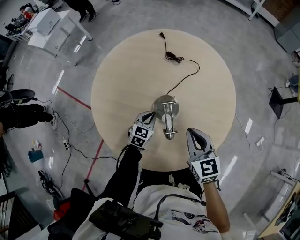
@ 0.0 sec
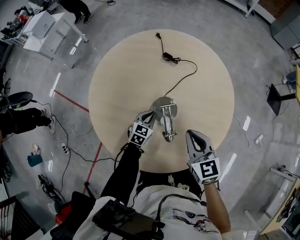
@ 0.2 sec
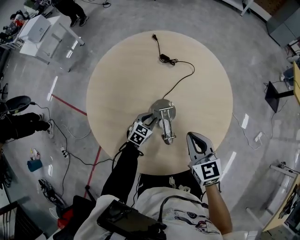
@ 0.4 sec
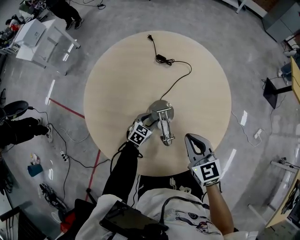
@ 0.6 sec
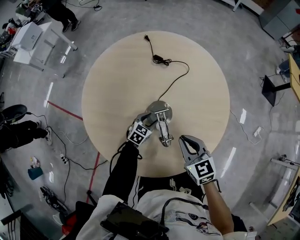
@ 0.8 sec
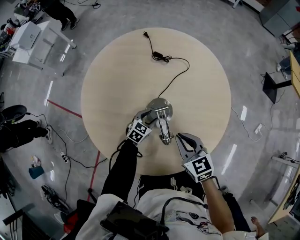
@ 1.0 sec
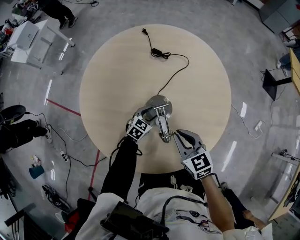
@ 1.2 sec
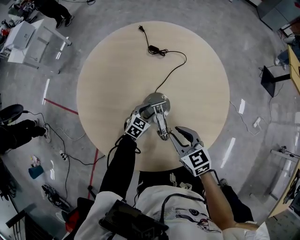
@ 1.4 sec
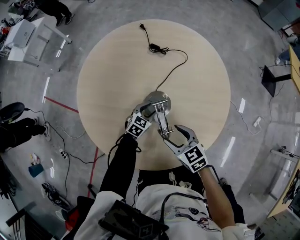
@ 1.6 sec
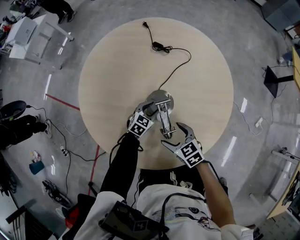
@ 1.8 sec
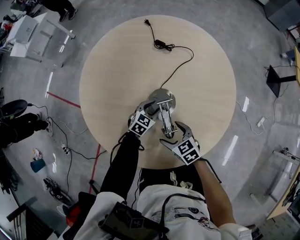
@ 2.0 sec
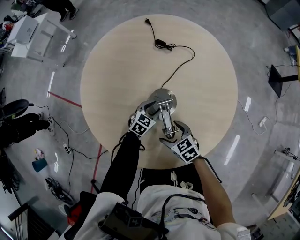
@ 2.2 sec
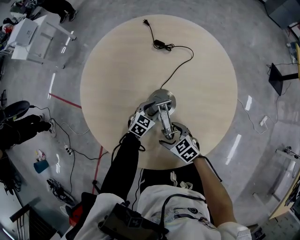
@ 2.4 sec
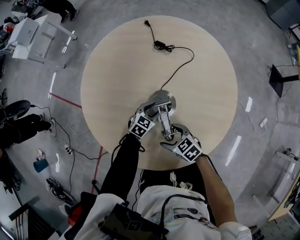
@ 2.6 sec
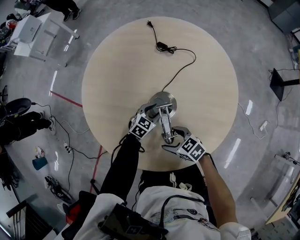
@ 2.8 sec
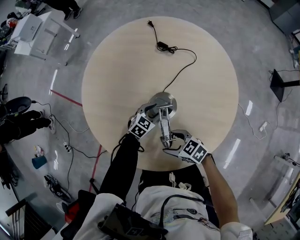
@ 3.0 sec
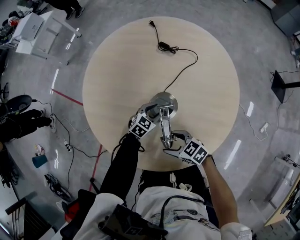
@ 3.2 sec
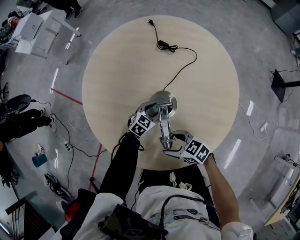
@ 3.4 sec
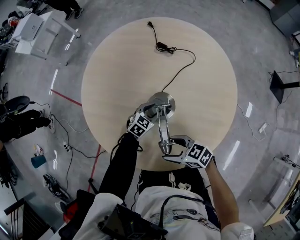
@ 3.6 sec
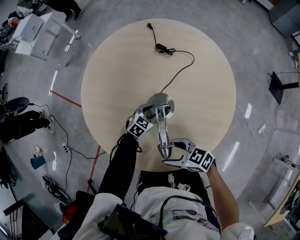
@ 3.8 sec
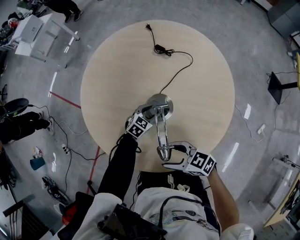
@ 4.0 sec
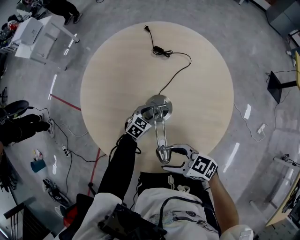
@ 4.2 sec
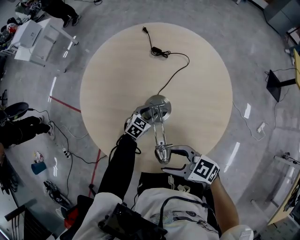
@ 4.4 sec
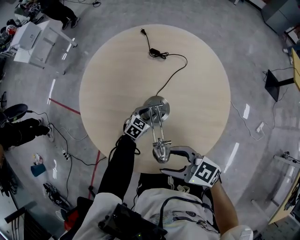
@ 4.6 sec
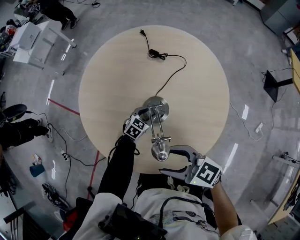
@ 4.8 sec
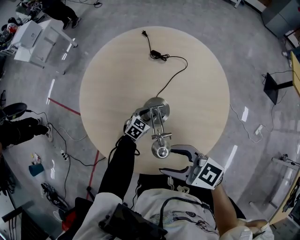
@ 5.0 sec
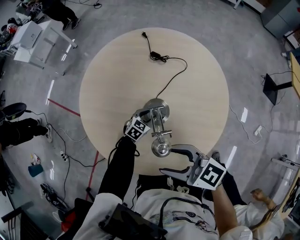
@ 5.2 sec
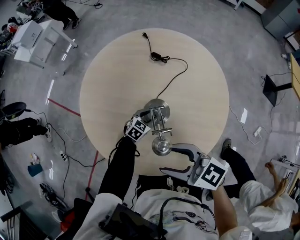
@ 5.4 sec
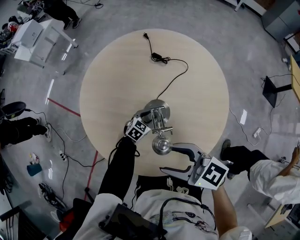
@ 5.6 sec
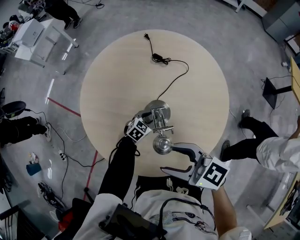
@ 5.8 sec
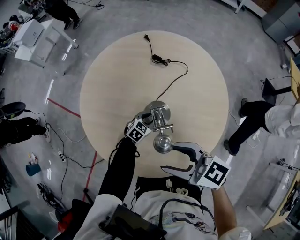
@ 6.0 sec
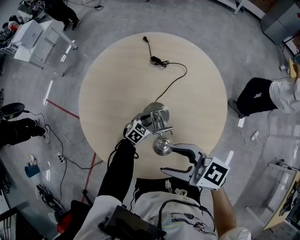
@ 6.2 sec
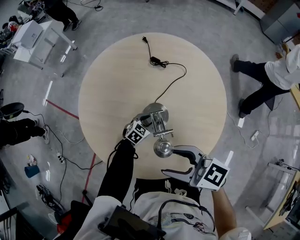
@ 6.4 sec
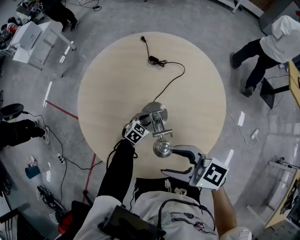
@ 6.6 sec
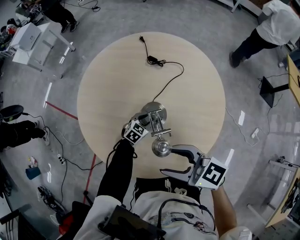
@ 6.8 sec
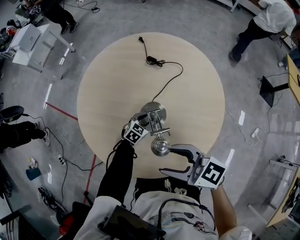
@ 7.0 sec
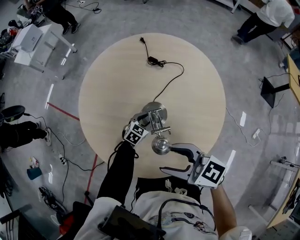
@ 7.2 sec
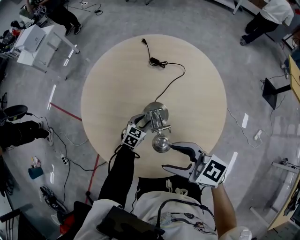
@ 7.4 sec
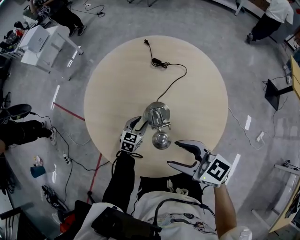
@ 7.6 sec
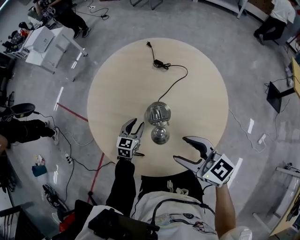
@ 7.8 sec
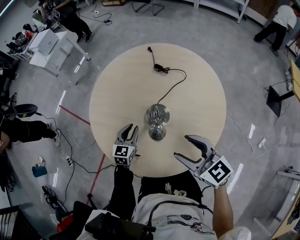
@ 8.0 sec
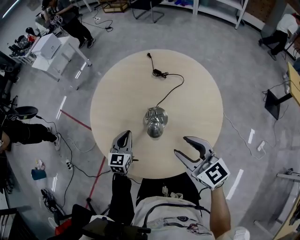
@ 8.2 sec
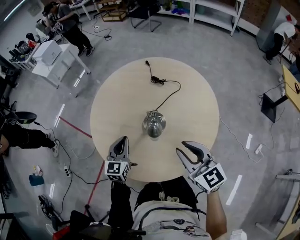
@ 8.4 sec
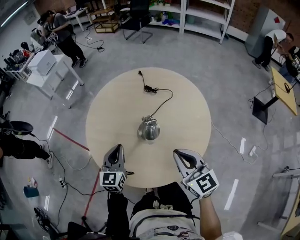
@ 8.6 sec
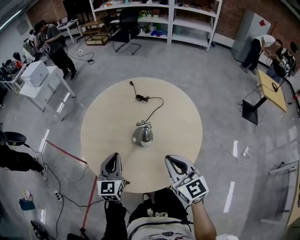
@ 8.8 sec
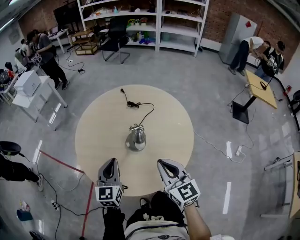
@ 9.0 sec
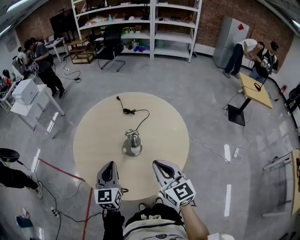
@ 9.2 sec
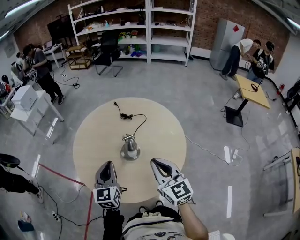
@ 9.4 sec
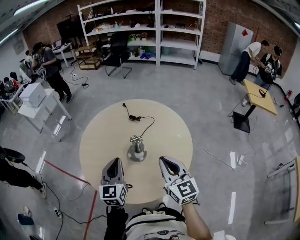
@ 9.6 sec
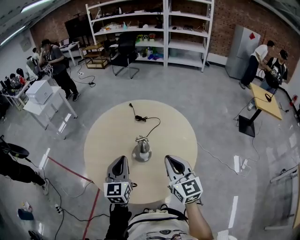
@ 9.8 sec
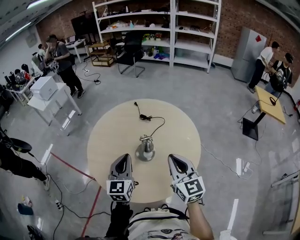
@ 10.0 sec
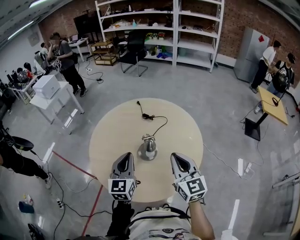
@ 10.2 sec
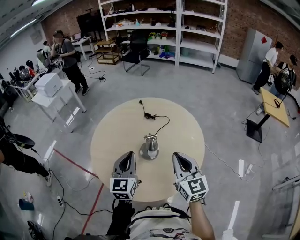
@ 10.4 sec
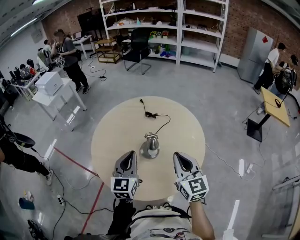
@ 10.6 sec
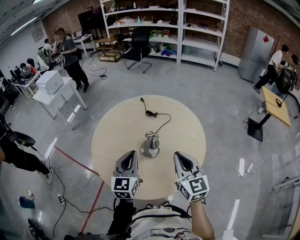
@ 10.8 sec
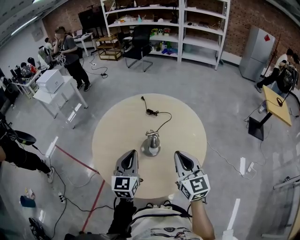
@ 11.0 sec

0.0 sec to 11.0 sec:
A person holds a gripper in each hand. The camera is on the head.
0.0 sec to 1.6 sec: Both grippers move downward, approximately 10 cm. The left gripper opens; the right gripper rotates approximately 20 degrees, and opens.
1.6 sec to 3.2 sec: The right gripper moves downward, approximately 5 cm, and changes its angle by about 30 degrees.
3.2 sec to 4.8 sec: The right gripper travels upward by roughly 20 cm, and rotates about 20 degrees.
4.8 sec to 6.2 sec: The right gripper ends up some 5 cm from where it was.
6.2 sec to 7.8 sec: The right gripper shifts about 5 cm to the right; the left gripper is displaced upward and to the left by approximately 15 cm, and swivels about 30 degrees.
7.8 sec to 9.4 sec: The left gripper heads upward and backward, covering about 30 cm, swivels approximately 30 degrees, and closes its fingers. The right gripper shifts about 15 cm upward and backward, swivels approximately 40 degrees, and closes its fingers.
9.4 sec to 11.0 sec: The grippers stay close to where they were, moving slightly.

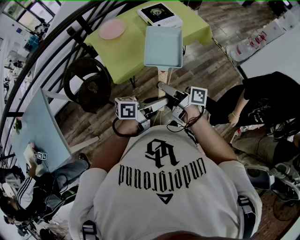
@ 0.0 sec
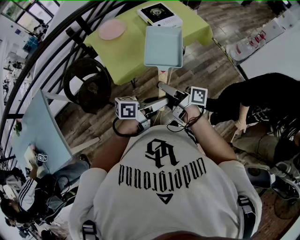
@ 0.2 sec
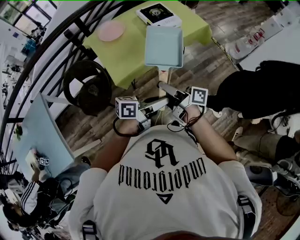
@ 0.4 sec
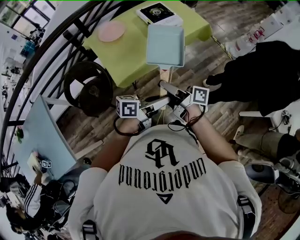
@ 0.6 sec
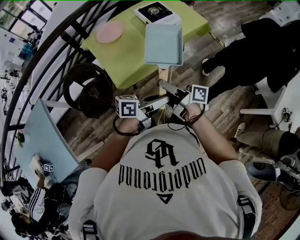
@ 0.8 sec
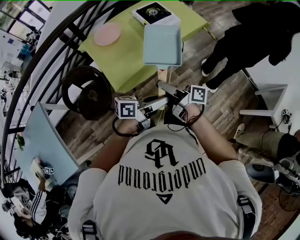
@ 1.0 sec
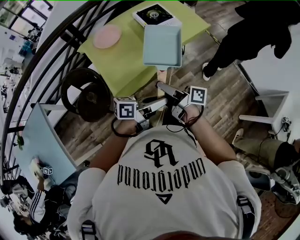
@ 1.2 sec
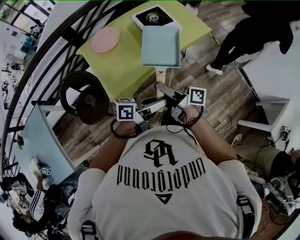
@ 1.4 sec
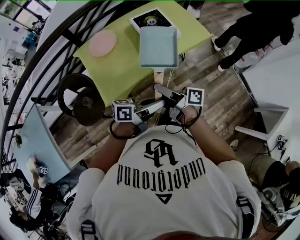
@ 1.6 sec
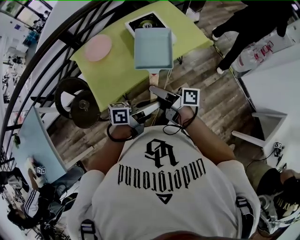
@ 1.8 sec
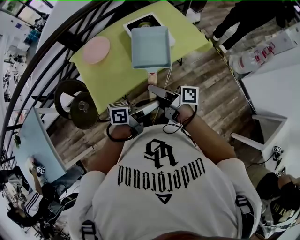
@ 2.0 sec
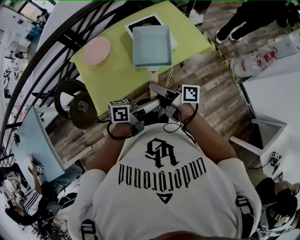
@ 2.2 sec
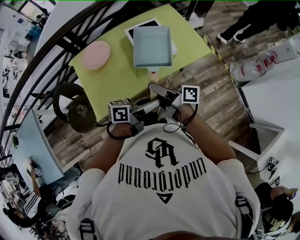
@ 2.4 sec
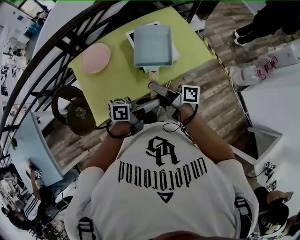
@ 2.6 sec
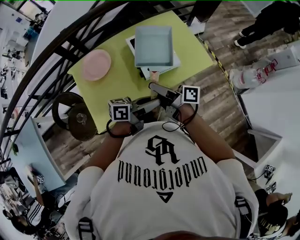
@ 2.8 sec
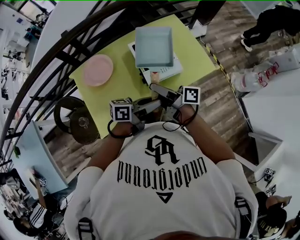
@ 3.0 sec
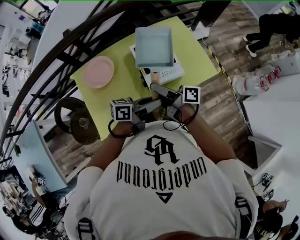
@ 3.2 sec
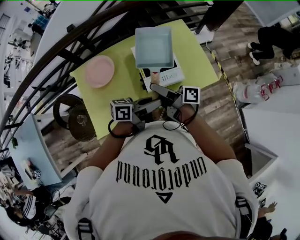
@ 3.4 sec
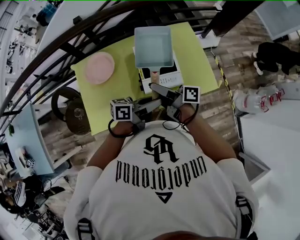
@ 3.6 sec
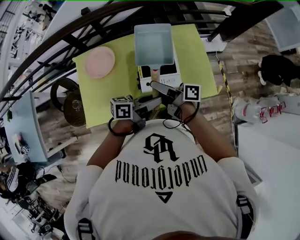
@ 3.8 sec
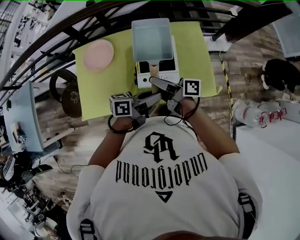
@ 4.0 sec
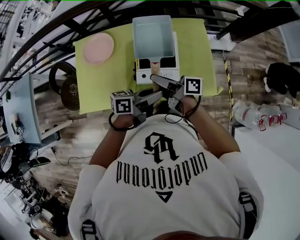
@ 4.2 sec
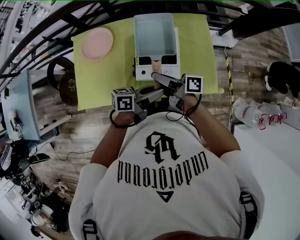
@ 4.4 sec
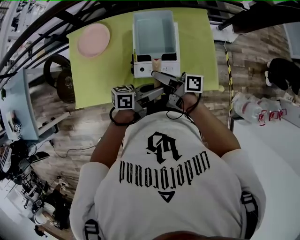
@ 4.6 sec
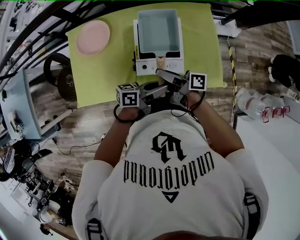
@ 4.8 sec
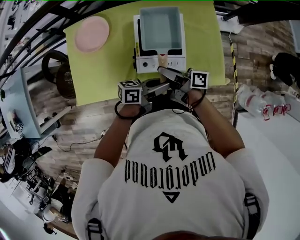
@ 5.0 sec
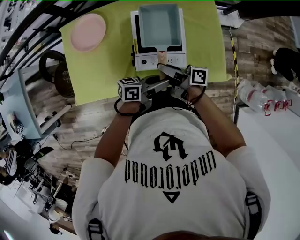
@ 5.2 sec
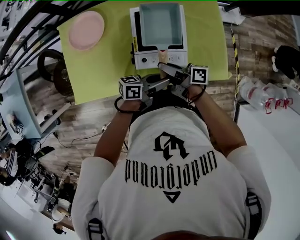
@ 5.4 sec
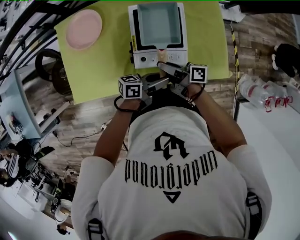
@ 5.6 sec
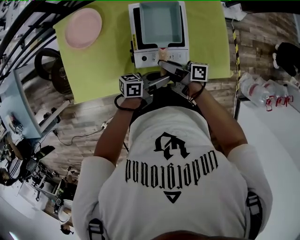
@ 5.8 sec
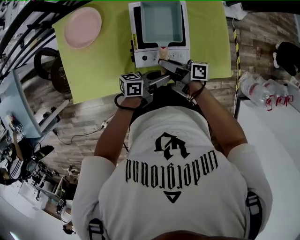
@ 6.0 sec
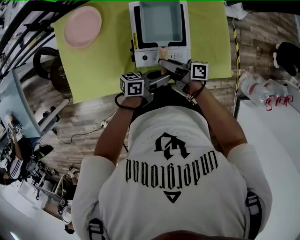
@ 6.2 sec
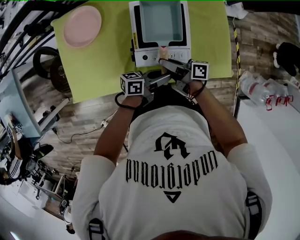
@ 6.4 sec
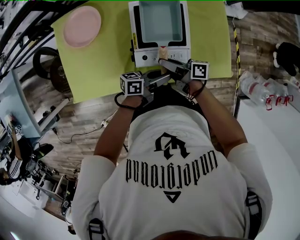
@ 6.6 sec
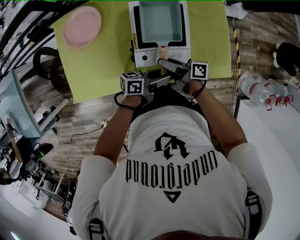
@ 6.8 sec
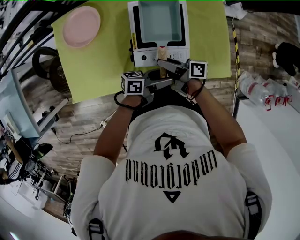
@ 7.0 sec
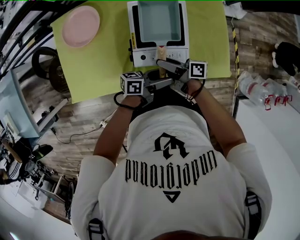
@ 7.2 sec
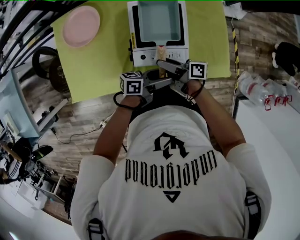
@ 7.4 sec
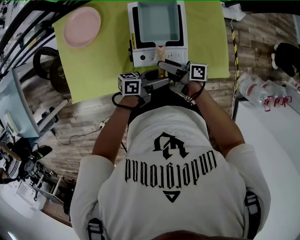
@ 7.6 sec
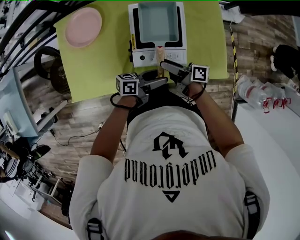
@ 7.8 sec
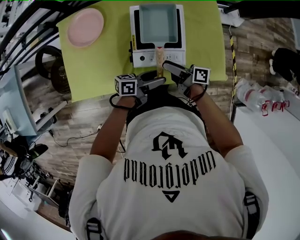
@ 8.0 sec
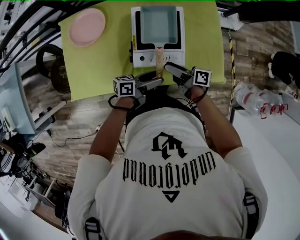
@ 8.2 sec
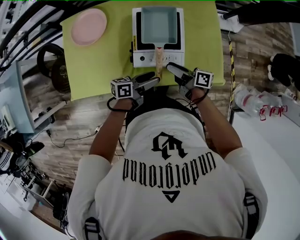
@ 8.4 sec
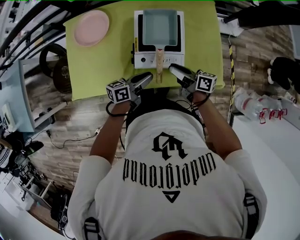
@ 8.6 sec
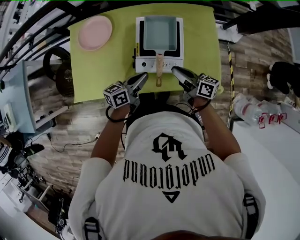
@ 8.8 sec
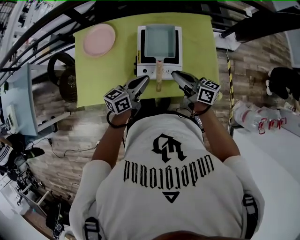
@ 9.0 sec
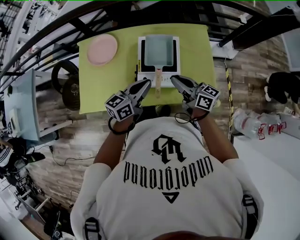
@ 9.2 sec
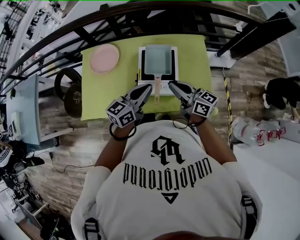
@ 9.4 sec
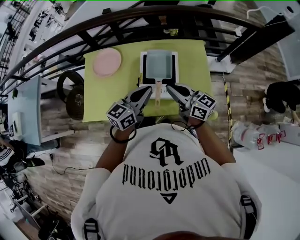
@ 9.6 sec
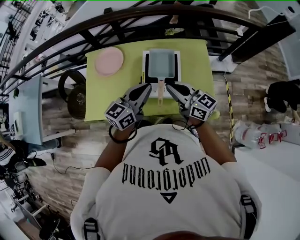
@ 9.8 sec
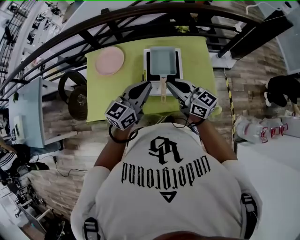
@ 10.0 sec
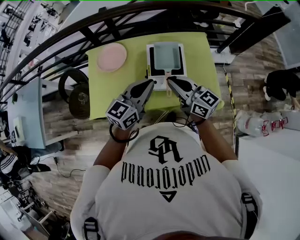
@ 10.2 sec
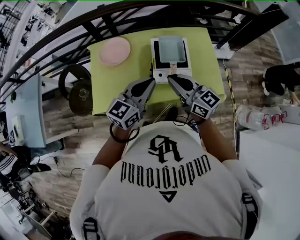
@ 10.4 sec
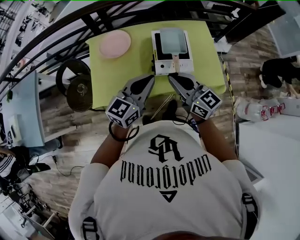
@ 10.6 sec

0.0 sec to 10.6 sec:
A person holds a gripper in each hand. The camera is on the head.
0.0 sec to 1.6 sec: Both grippers travel together forward, about 20 cm.
1.6 sec to 3.0 sec: Both grippers move forward, approximately 30 cm.
3.0 sec to 4.6 sec: The left gripper moves some 20 cm, and rotates some 20 degrees; the right gripper moves some 20 cm, and rotates some 30 degrees.
4.6 sec to 6.0 sec: The two grippers go some 15 cm downward.
6.0 sec to 7.6 sec: The right gripper opens; the left gripper opens.
7.6 sec to 9.0 sec: Both grippers travel together upward, about 15 cm. The right gripper turns by about 30 degrees, and closes up. Meanwhile the left gripper changes its angle by some 40 degrees, and closes up.
9.0 sec to 10.6 sec: The right gripper shifts approximately 25 cm to the left, upward and backward, and swivels roughly 40 degrees, while the left gripper goes about 25 cm upward, to the left and backward, and rotates some 30 degrees.

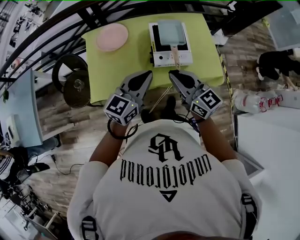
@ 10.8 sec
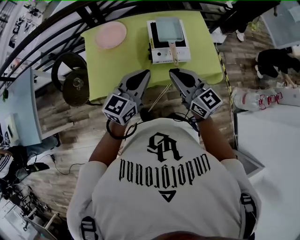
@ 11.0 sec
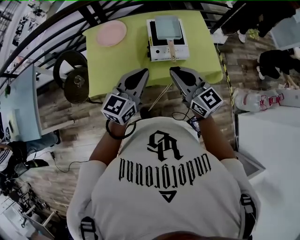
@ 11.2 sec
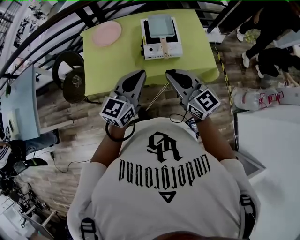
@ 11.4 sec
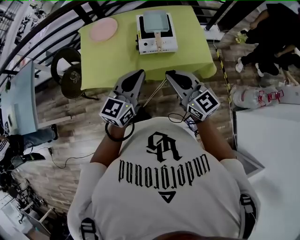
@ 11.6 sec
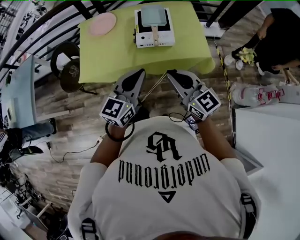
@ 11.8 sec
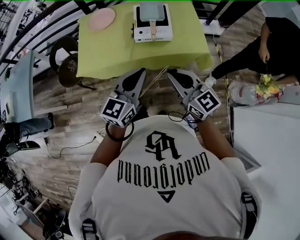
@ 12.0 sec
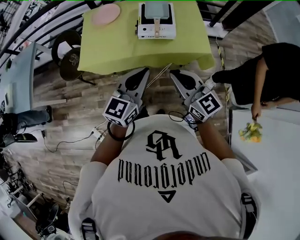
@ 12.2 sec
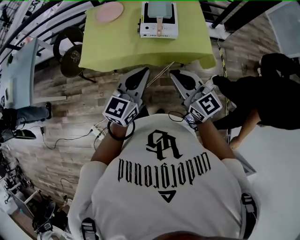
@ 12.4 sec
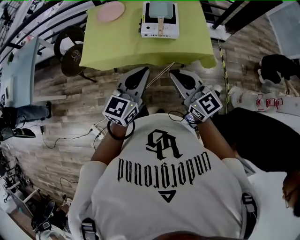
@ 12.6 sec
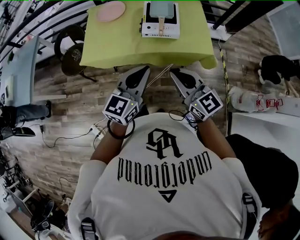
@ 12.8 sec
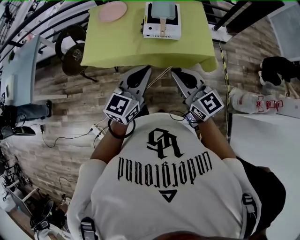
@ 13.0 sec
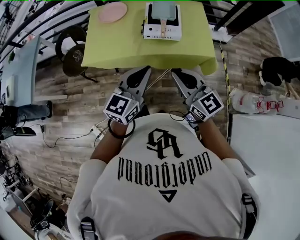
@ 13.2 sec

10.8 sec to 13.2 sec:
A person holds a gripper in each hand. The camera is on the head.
10.8 sec to 12.0 sec: The grippers both shift backward and to the right by approximately 25 cm.
12.0 sec to 13.2 sec: The grippers make only small movements.
